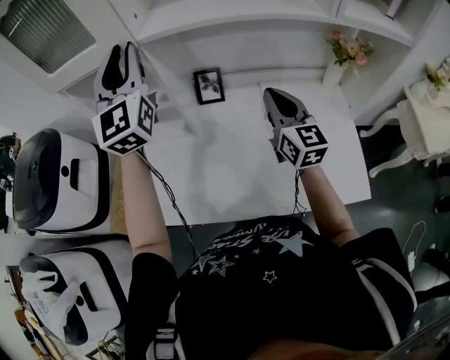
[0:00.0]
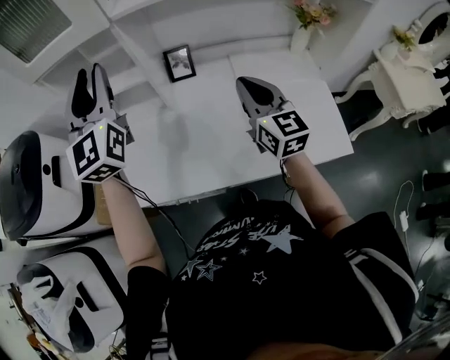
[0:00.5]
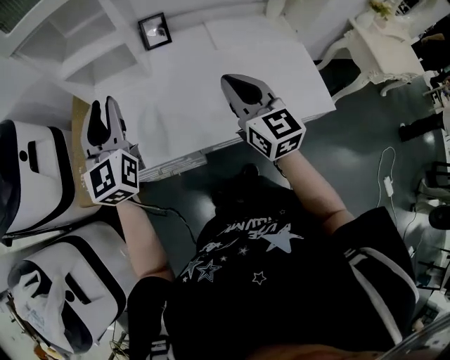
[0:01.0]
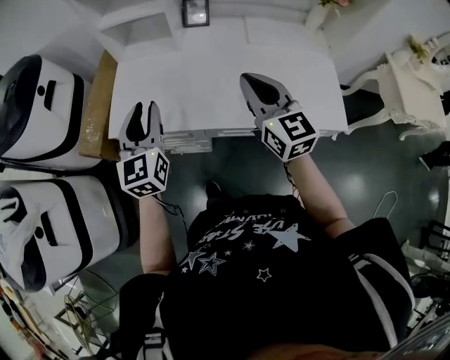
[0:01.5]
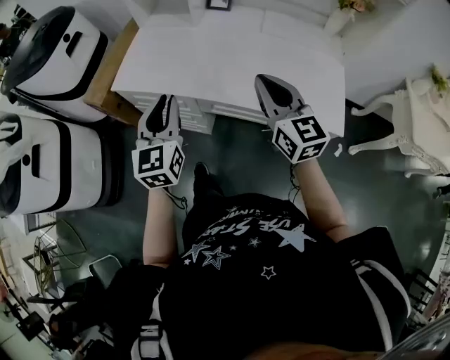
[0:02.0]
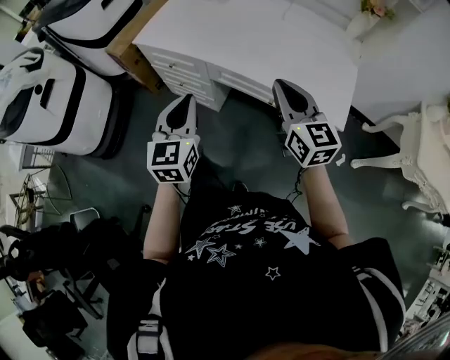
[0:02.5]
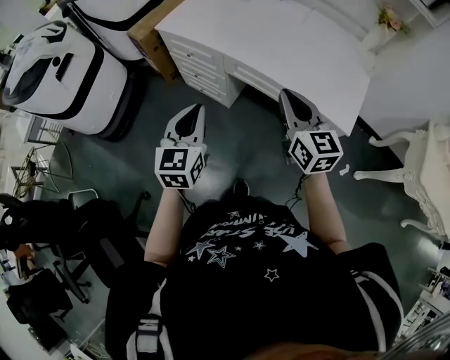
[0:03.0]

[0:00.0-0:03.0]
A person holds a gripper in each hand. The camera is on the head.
0:00.0 to 0:01.5: The right gripper heads backward, covering about 25 cm. Meanwhile the left gripper heads backward and downward, covering about 40 cm, and swivels roughly 30 degrees.
0:01.5 to 0:03.0: The two grippers go some 30 cm backward. The right gripper changes its angle by roughly 20 degrees.

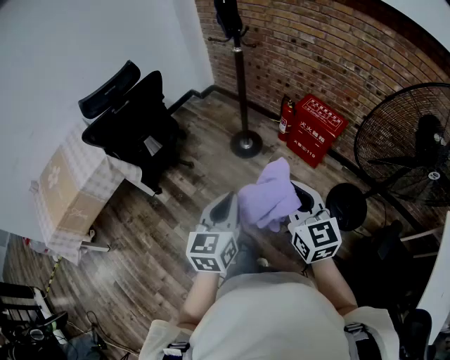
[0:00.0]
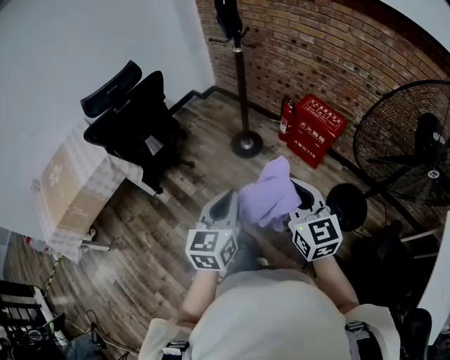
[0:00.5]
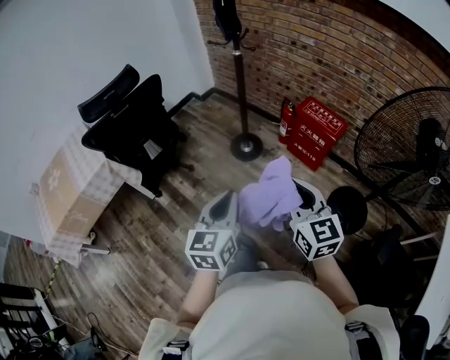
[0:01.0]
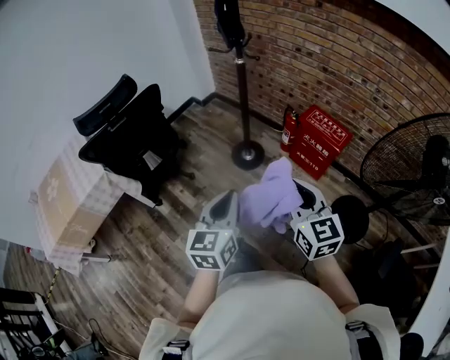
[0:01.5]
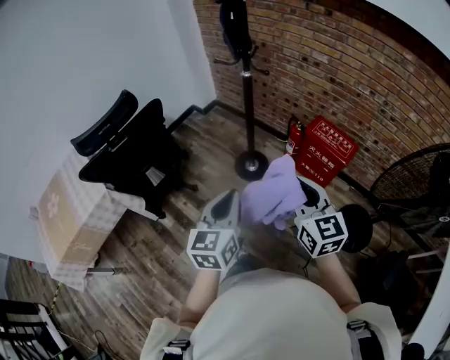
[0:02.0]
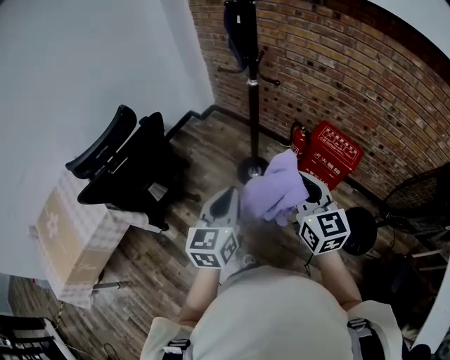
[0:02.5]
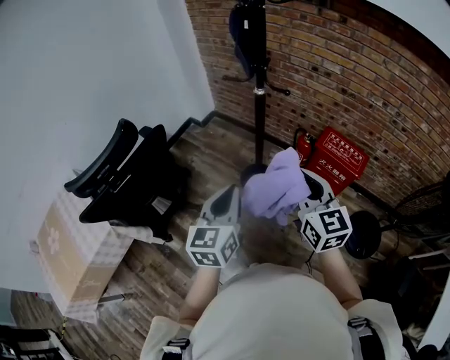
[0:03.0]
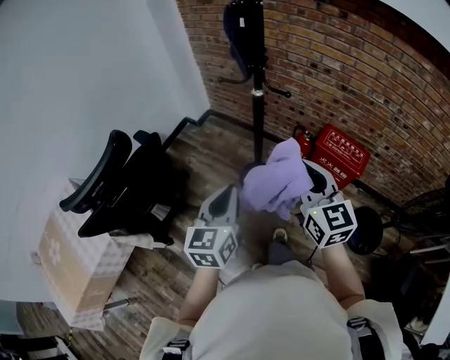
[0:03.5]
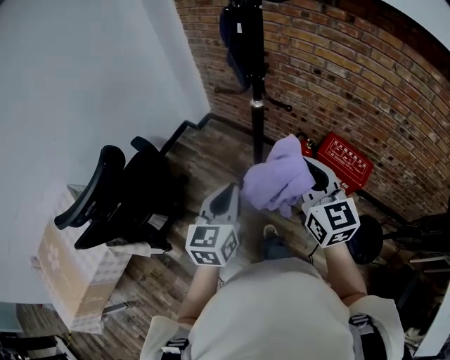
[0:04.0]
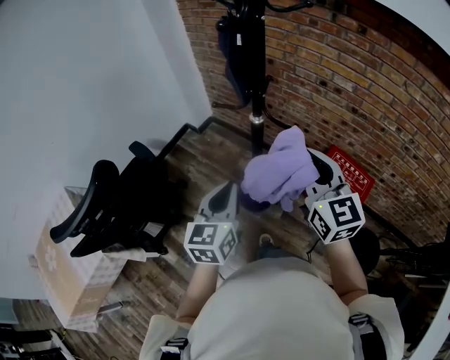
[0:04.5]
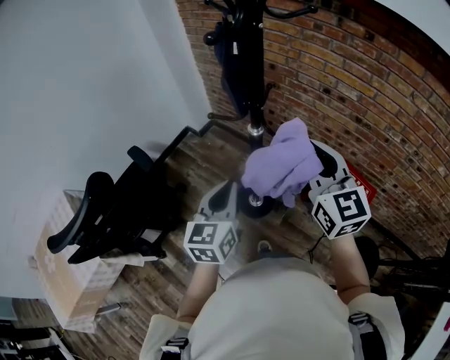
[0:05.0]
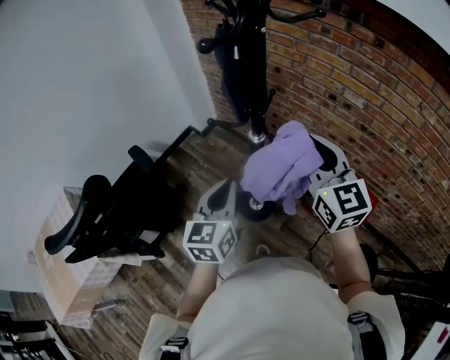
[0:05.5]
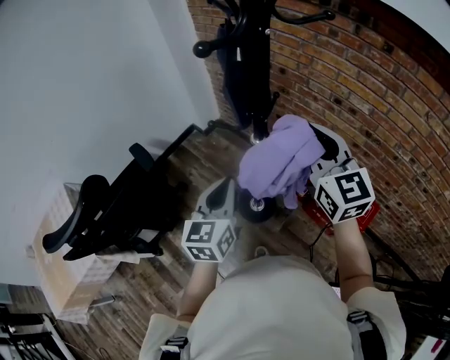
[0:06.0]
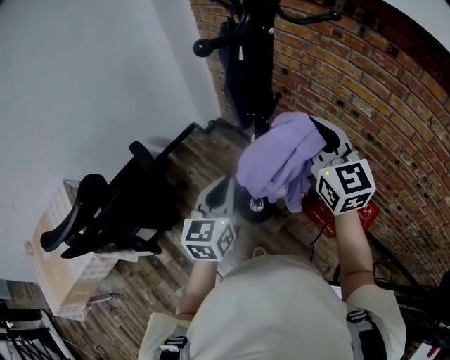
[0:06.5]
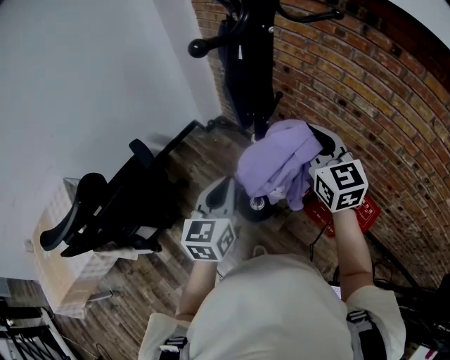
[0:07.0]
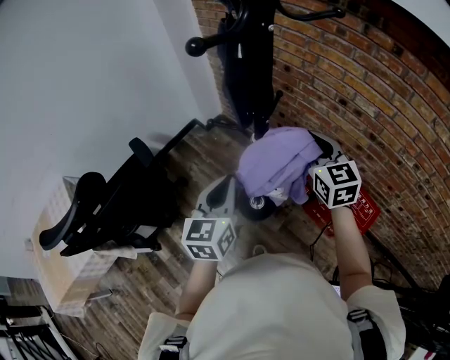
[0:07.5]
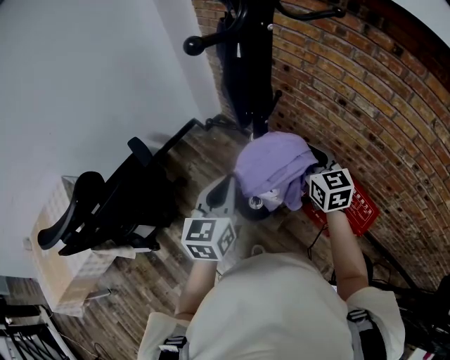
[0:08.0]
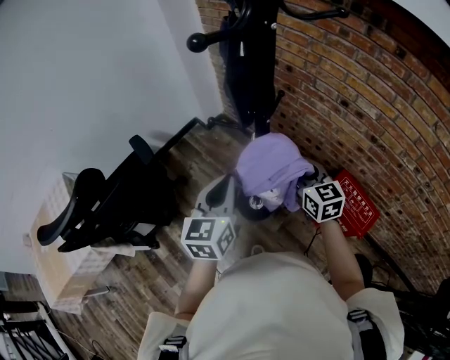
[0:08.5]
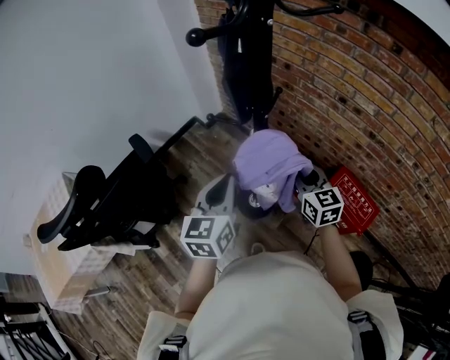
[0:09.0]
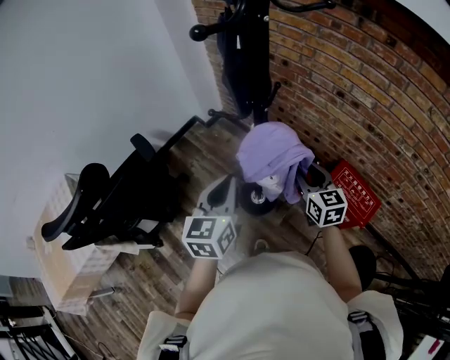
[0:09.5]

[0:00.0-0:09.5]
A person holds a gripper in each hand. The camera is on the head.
0:00.0 to 0:02.0: The two grippers go roughly 20 cm forward.
0:02.0 to 0:04.0: Both grippers travel together forward, approximately 25 cm.
0:04.0 to 0:05.5: Both grippers travel together forward, roughly 15 cm.
0:05.5 to 0:07.5: The right gripper goes about 15 cm downward and forward.
0:07.5 to 0:09.5: The right gripper is displaced downward and backward by about 15 cm, and opens up.

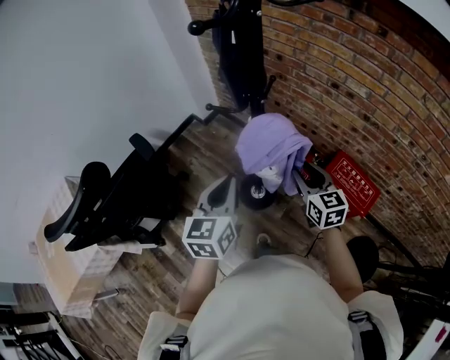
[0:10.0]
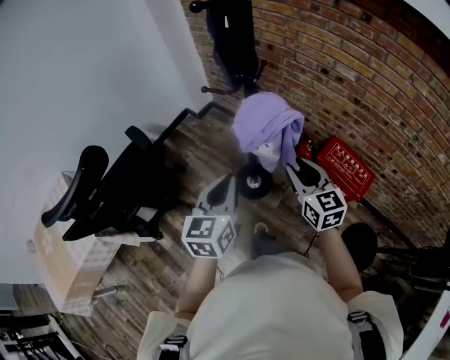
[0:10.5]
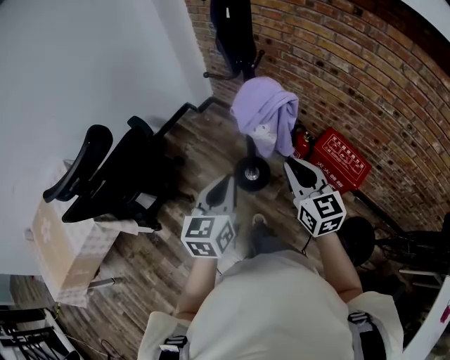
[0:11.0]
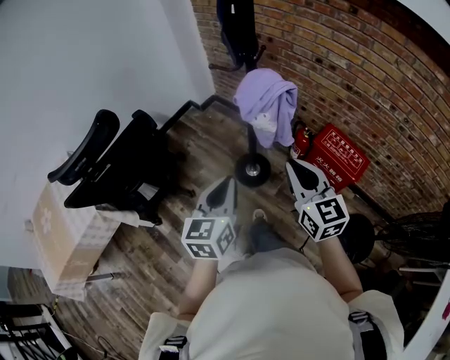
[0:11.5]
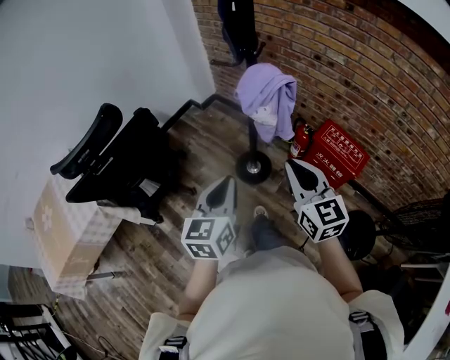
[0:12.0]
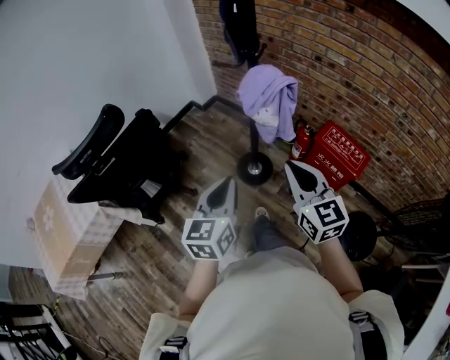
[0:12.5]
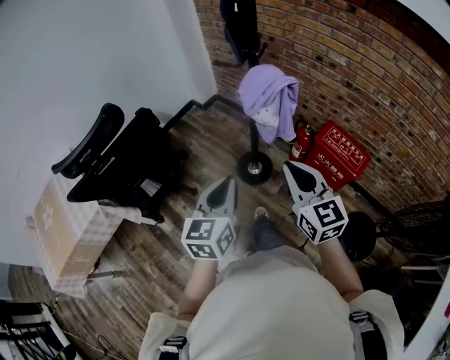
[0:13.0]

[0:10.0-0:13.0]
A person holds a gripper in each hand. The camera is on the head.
0:10.0 to 0:11.5: The right gripper moves backward and upward, roughly 25 cm, and closes its fingers, while the left gripper heads backward, covering about 20 cm.
0:11.5 to 0:13.0: The grippers make only small movements.

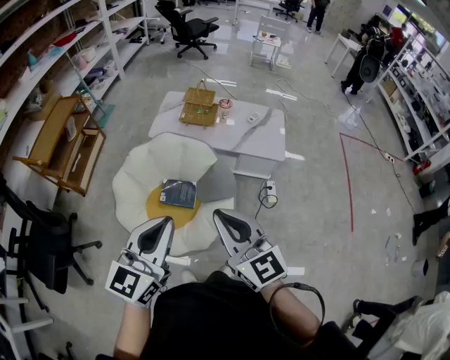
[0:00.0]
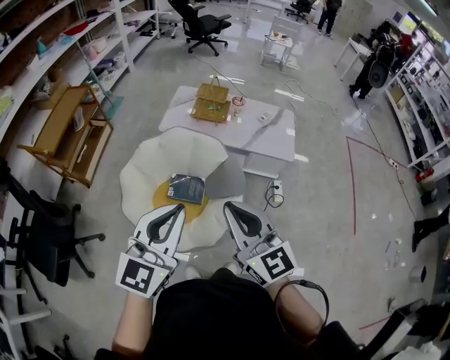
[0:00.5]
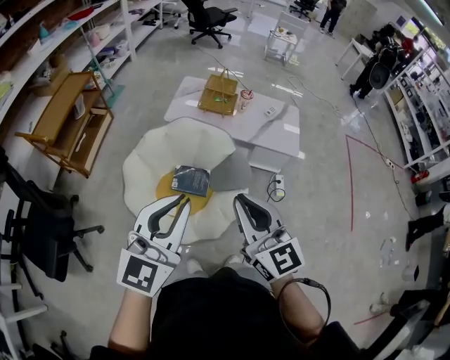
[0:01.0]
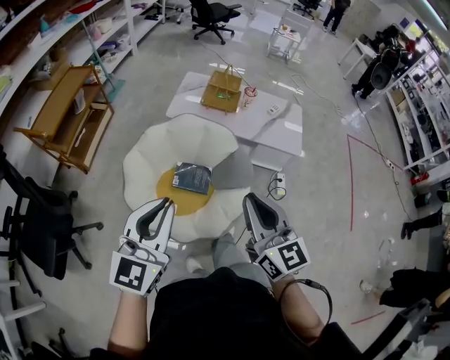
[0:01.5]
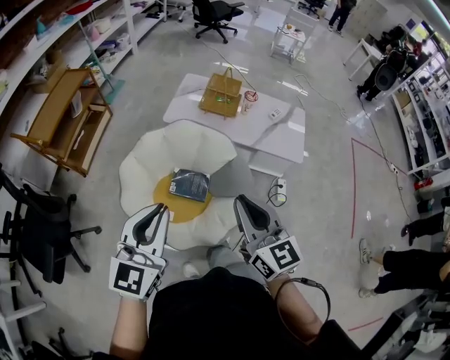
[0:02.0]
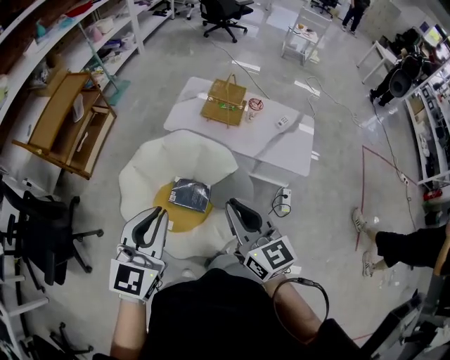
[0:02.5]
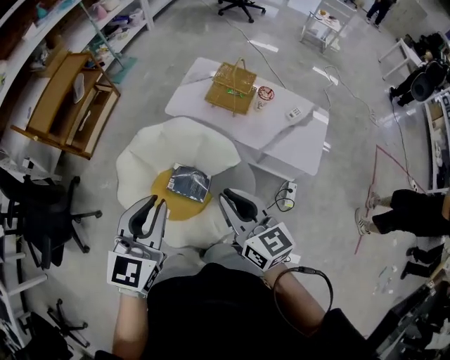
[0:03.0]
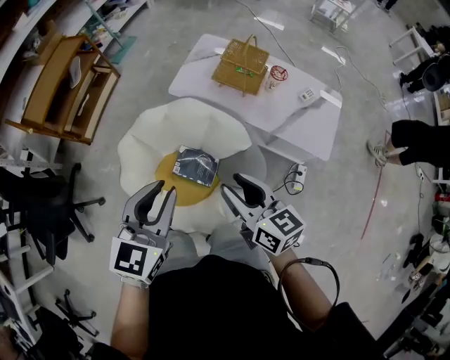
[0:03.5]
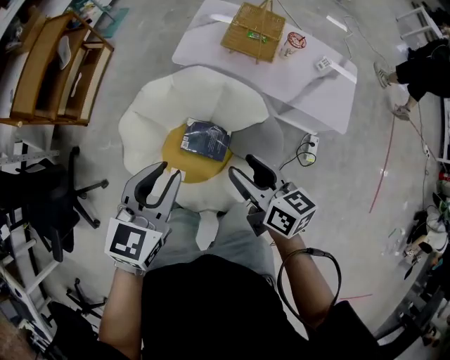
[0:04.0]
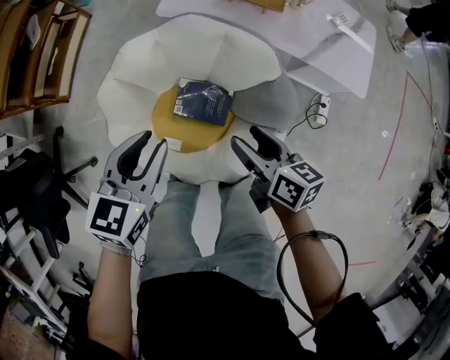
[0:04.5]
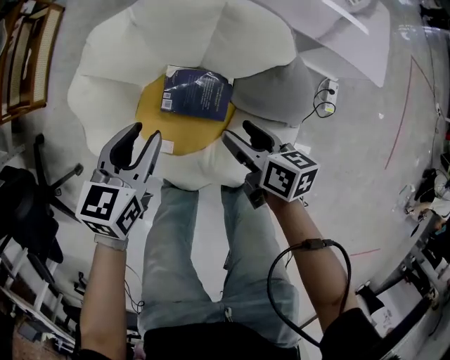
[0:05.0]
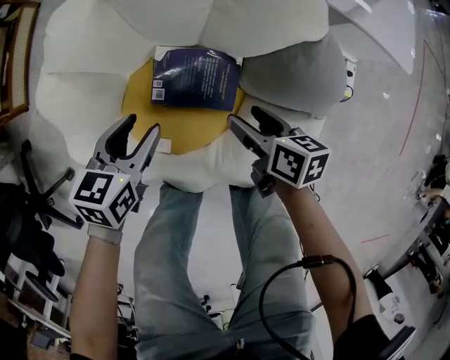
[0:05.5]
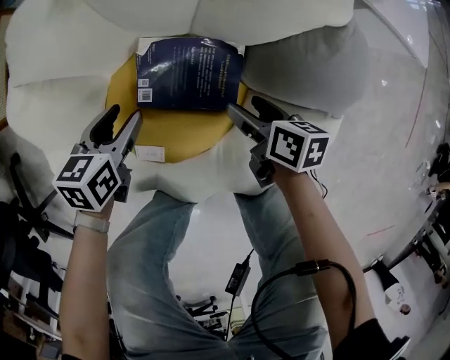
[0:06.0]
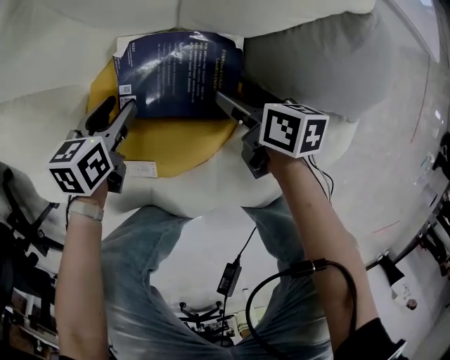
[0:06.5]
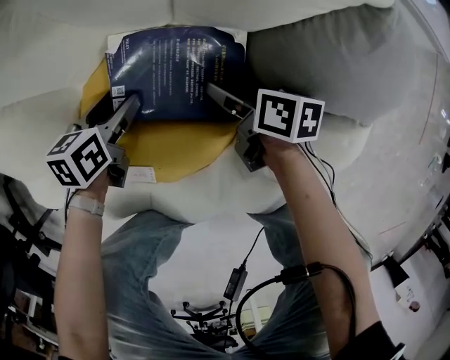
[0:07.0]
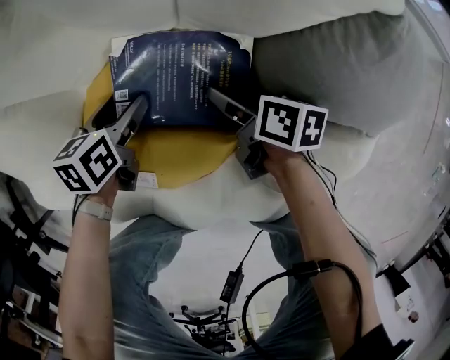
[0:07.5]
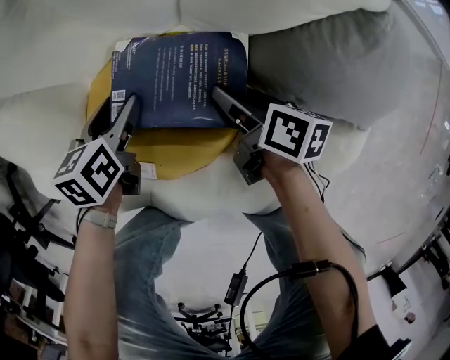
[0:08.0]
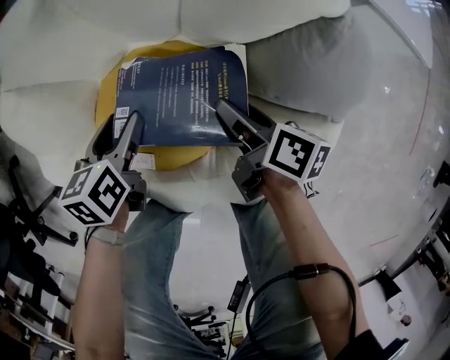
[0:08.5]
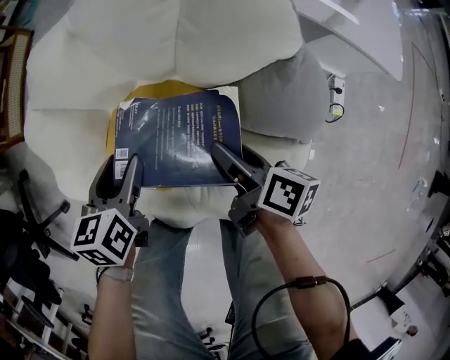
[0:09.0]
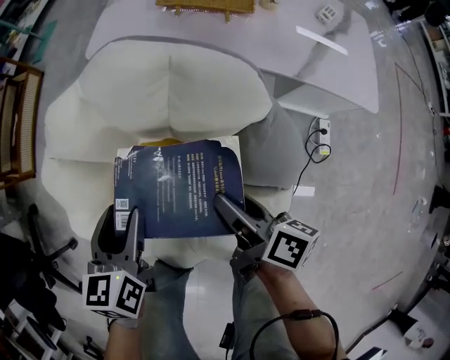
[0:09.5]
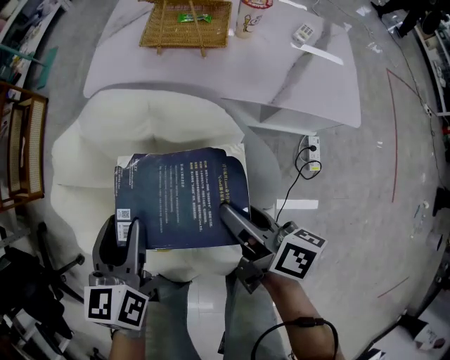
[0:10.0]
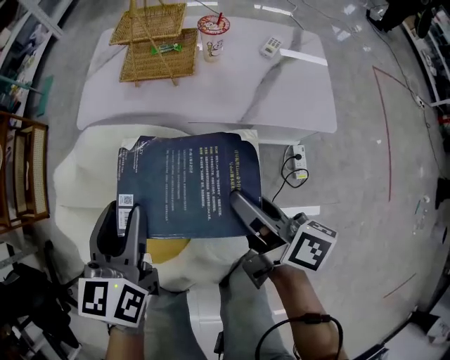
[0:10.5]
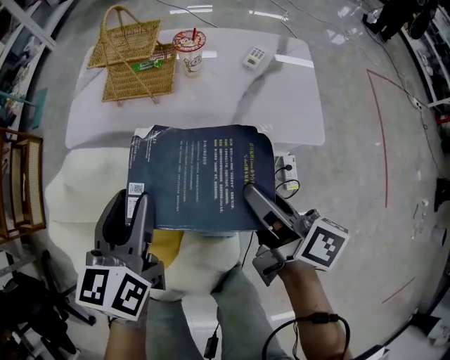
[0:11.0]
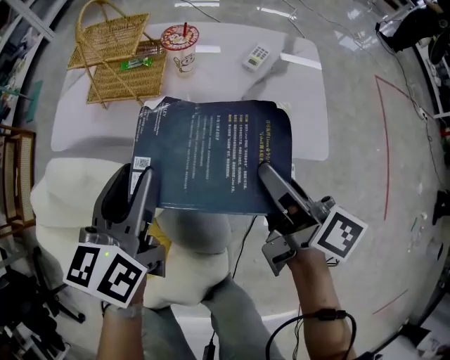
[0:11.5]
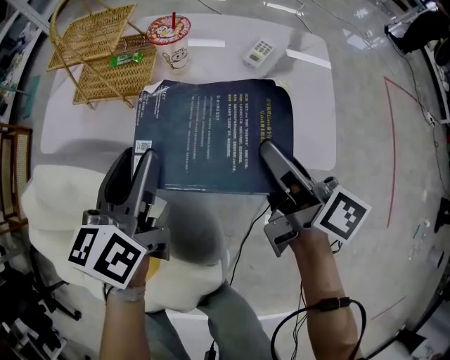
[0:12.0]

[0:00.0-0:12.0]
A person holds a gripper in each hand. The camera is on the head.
0:00.0 to 0:02.0: The left gripper travels to the left, forward and downward by some 15 cm. The right gripper goes about 10 cm forward and downward.
0:02.0 to 0:04.0: The right gripper shifts about 25 cm downward and forward, swivels about 40 degrees, and opens up, while the left gripper is displaced forward and downward by roughly 25 cm, and turns by roughly 20 degrees.
0:04.0 to 0:06.0: The grippers both shift downward by roughly 60 cm. The left gripper turns by some 30 degrees, and opens. The right gripper swivels some 30 degrees.
0:06.0 to 0:08.0: The two grippers go some 5 cm downward.
0:08.0 to 0:10.0: The right gripper swivels some 20 degrees.
0:10.0 to 0:12.0: The left gripper swivels roughly 20 degrees.
